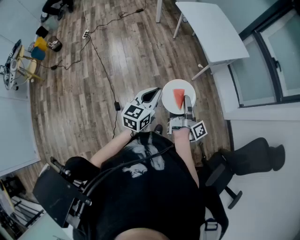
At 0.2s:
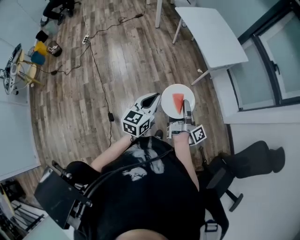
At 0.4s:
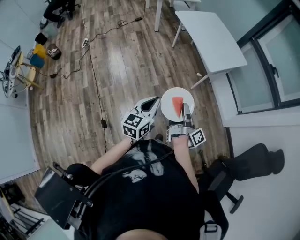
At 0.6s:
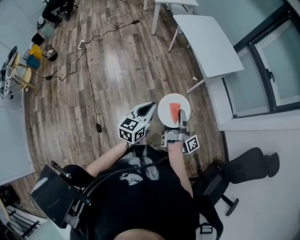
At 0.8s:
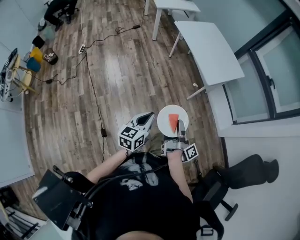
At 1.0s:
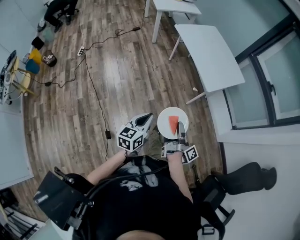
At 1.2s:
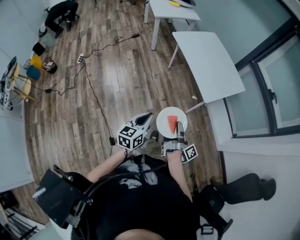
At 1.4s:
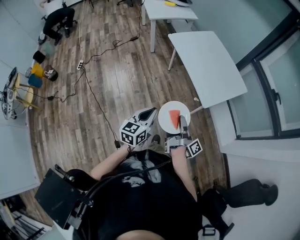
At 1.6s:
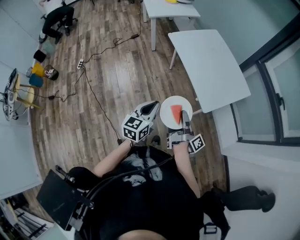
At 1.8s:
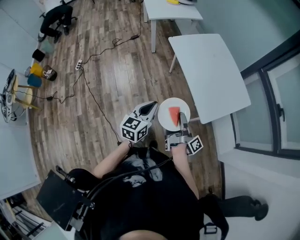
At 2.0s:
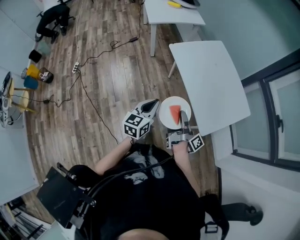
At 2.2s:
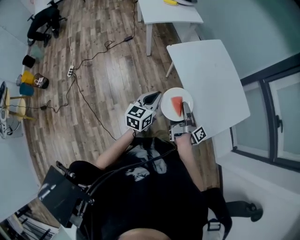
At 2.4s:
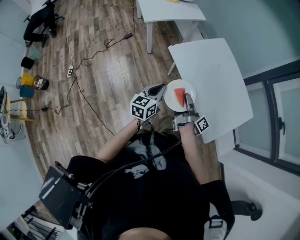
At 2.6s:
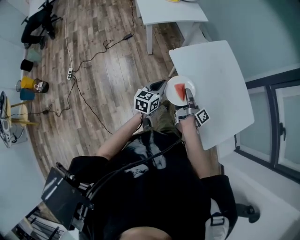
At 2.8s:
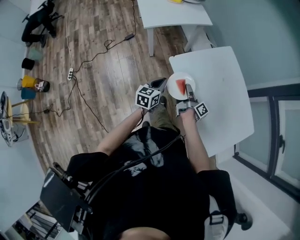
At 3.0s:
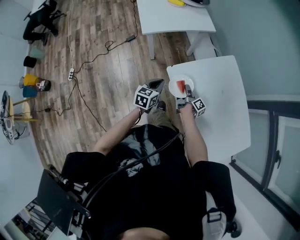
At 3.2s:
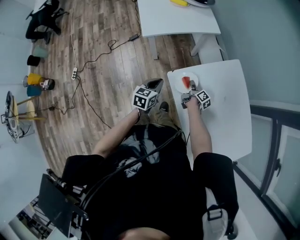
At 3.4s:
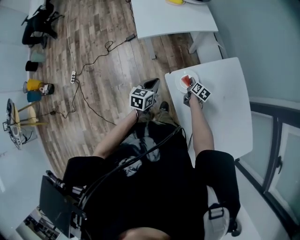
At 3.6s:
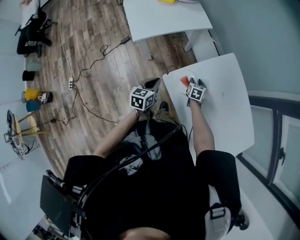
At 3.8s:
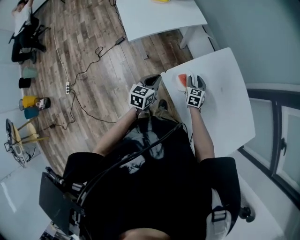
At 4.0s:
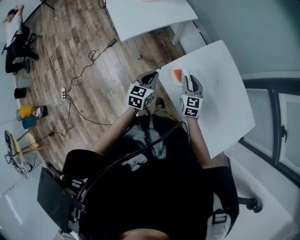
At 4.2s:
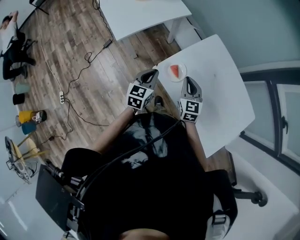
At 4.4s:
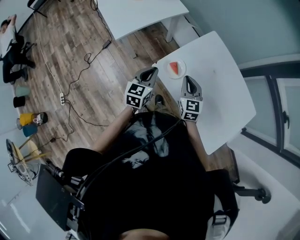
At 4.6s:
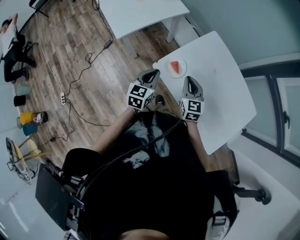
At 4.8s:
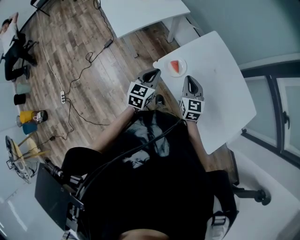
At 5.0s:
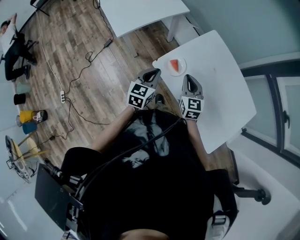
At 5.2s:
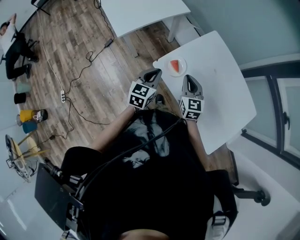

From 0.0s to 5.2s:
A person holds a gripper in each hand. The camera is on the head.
From 0.0s to 1.8s: The left gripper shifts by approximately 40 cm.
From 1.8s to 3.4s: The left gripper shifts by some 70 cm.
From 3.4s to 5.2s: The left gripper goes approximately 10 cm upward, and turns by about 20 degrees.

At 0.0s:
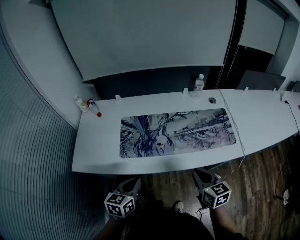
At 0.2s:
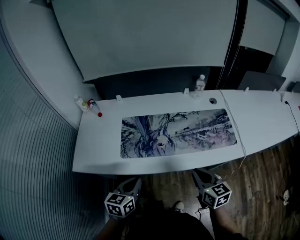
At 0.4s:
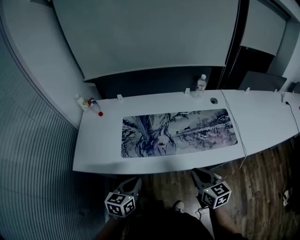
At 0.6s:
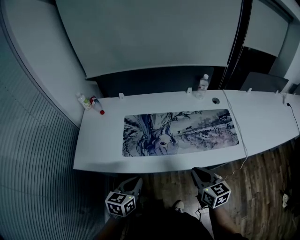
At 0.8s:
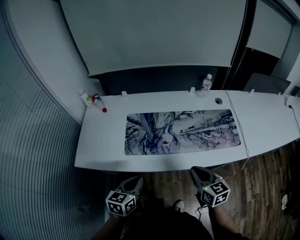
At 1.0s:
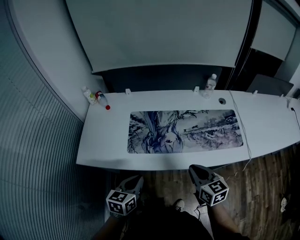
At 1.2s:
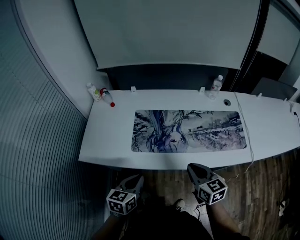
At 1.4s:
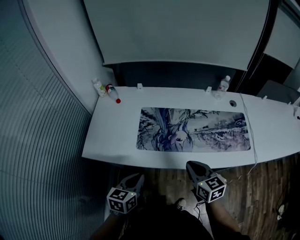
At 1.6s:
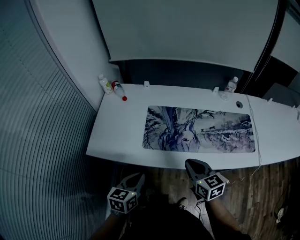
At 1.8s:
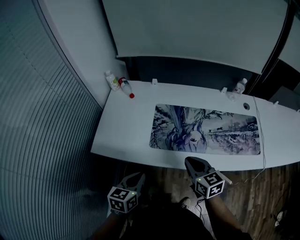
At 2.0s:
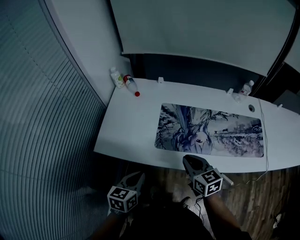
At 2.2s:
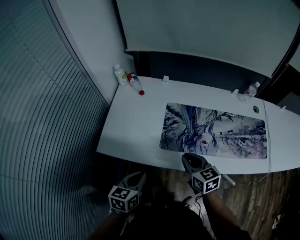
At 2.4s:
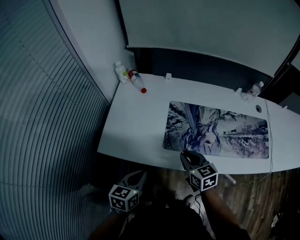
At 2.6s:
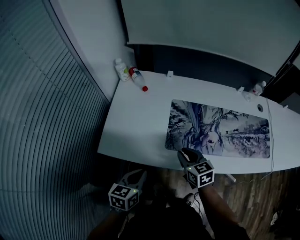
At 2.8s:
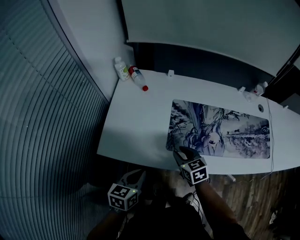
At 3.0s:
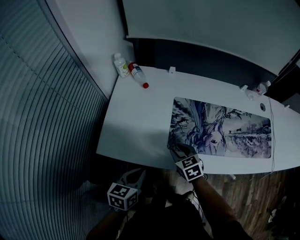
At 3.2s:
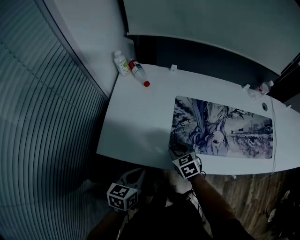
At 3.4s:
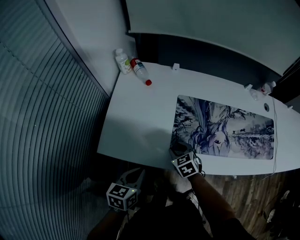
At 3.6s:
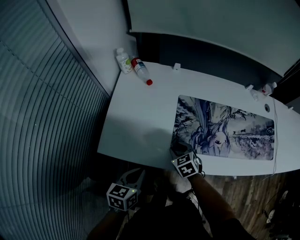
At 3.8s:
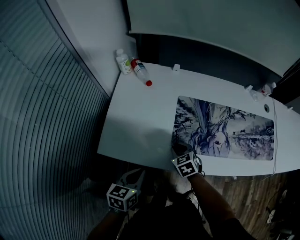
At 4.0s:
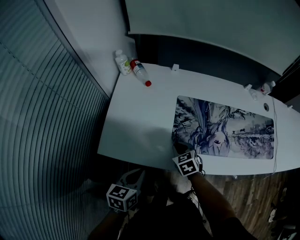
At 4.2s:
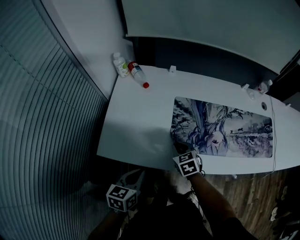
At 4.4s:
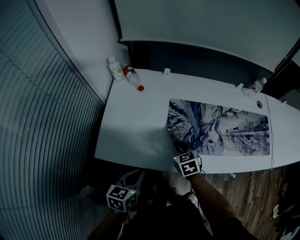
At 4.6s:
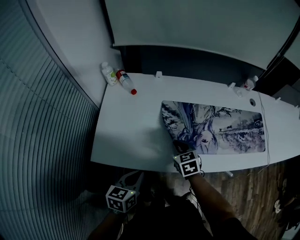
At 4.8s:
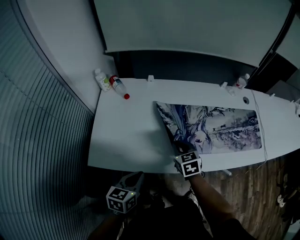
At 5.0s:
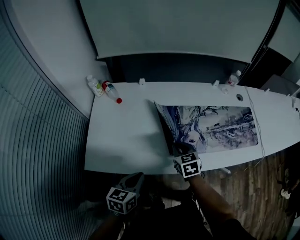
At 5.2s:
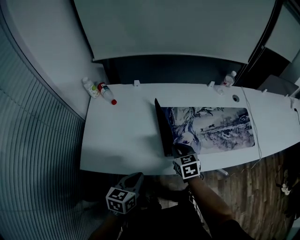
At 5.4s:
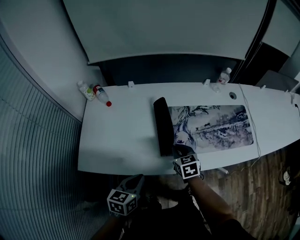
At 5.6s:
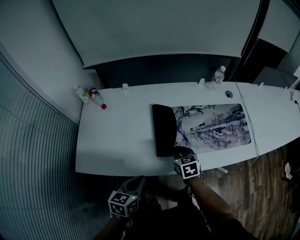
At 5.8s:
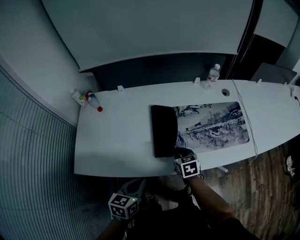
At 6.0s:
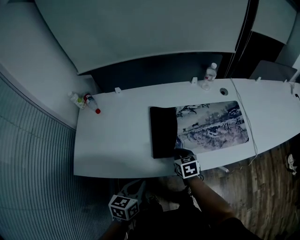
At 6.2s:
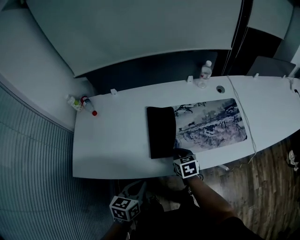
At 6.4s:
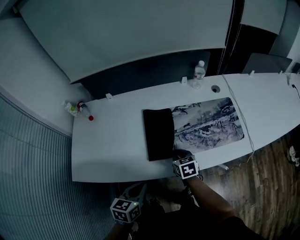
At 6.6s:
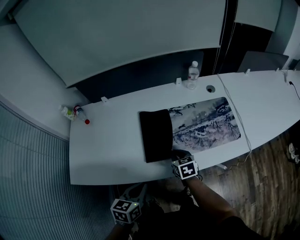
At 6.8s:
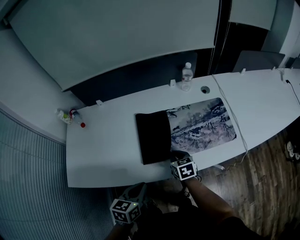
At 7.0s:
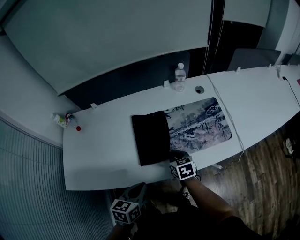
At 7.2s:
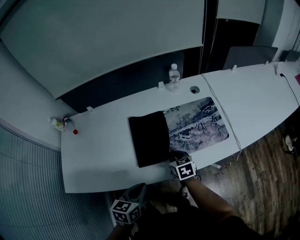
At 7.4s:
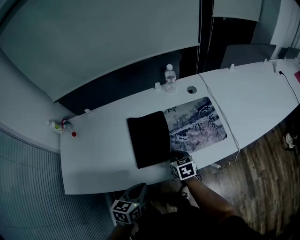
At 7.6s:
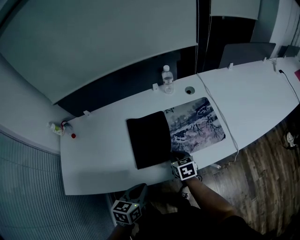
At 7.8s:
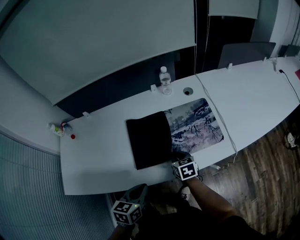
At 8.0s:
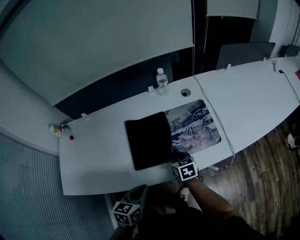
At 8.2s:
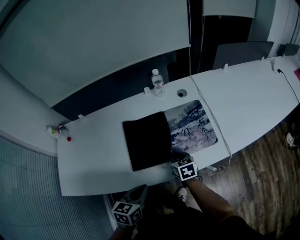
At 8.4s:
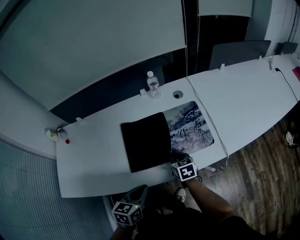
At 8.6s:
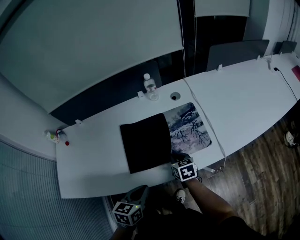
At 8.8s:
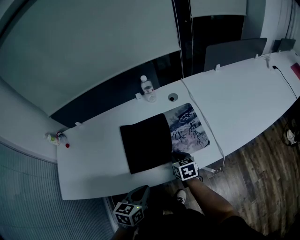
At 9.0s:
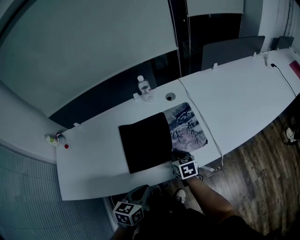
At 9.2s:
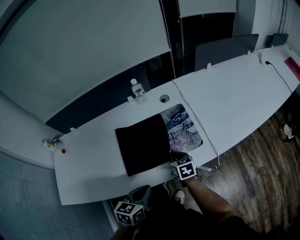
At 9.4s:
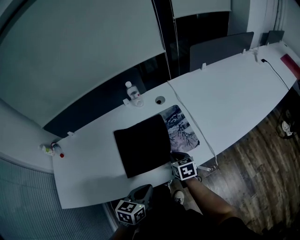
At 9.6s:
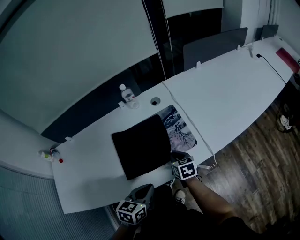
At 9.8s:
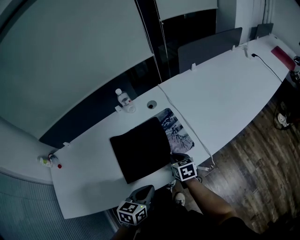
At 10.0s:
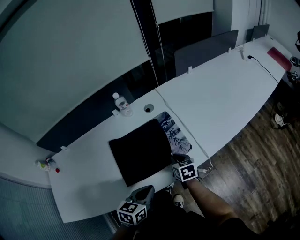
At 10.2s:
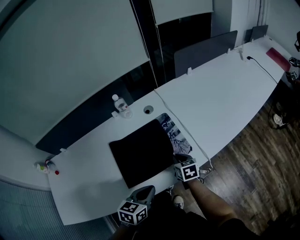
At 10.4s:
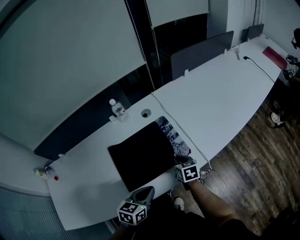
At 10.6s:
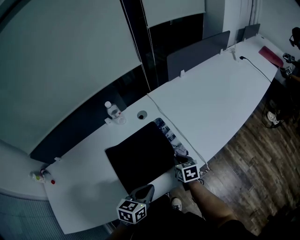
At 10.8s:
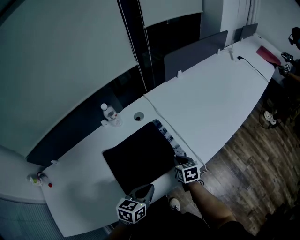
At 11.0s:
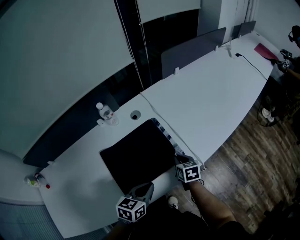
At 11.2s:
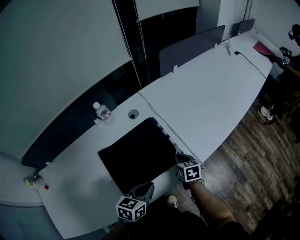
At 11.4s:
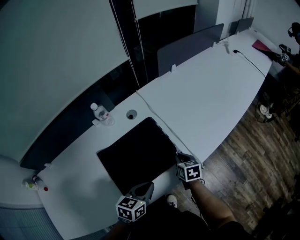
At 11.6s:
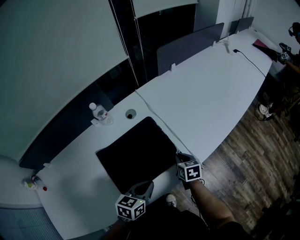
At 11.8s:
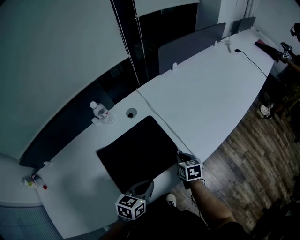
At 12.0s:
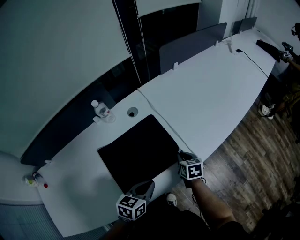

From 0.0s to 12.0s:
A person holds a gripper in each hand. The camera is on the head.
From 0.0s to 1.6s: The right gripper travels to the left by about 15 cm. The left gripper moves to the left, roughly 10 cm.
From 1.6s to 3.0s: The left gripper shifts approximately 15 cm to the left, forward and downward, while the right gripper moves to the left, downward and forward, roughly 25 cm, turns by roughly 20 degrees, and opens its fingers.
From 3.0s to 4.4s: The grippers make only small movements.
From 4.4s to 6.0s: Both grippers move to the right, roughly 25 cm. The right gripper changes its angle by about 20 degrees.
From 6.0s to 7.6s: The grippers both shift to the right by some 15 cm.
From 7.6s to 9.0s: The two grippers go approximately 10 cm to the right.
From 9.0s to 10.4s: The left gripper moves forward and to the right, some 10 cm. Meanwhile the right gripper is displaced to the right by about 10 cm.
From 10.4s to 12.0s: The right gripper goes roughly 5 cm to the right. The left gripper travels forward by about 5 cm.

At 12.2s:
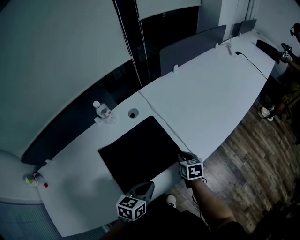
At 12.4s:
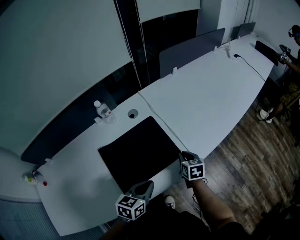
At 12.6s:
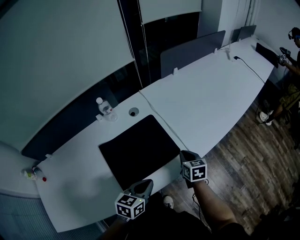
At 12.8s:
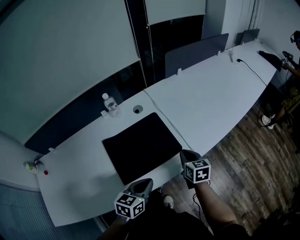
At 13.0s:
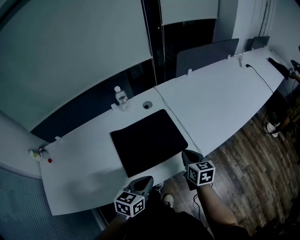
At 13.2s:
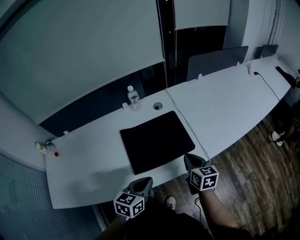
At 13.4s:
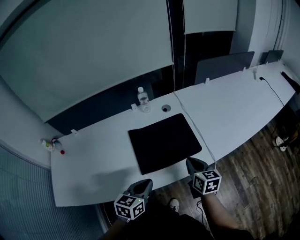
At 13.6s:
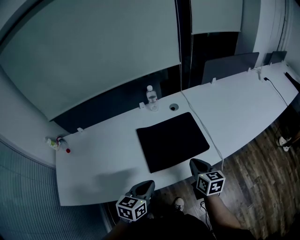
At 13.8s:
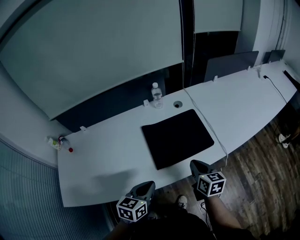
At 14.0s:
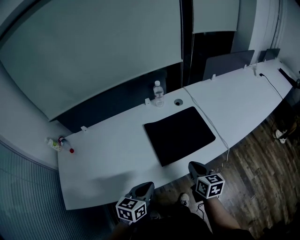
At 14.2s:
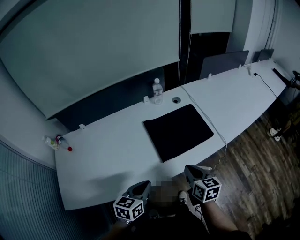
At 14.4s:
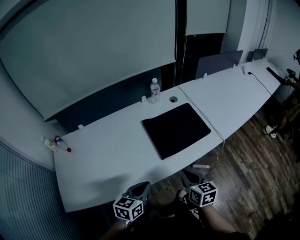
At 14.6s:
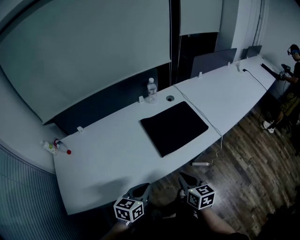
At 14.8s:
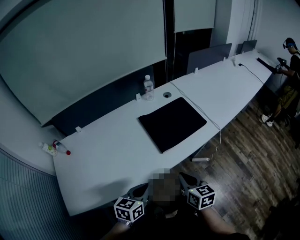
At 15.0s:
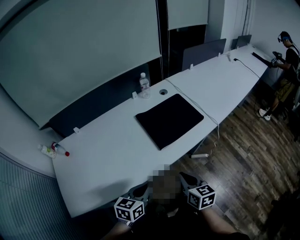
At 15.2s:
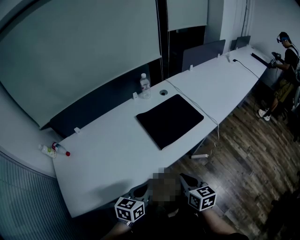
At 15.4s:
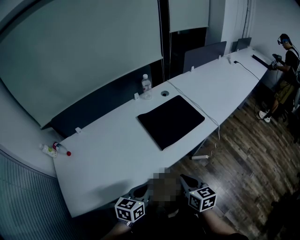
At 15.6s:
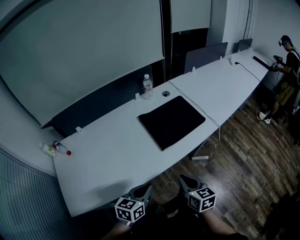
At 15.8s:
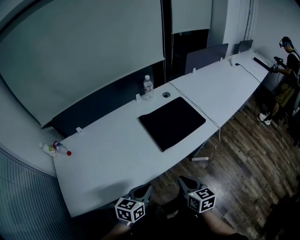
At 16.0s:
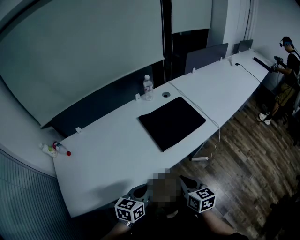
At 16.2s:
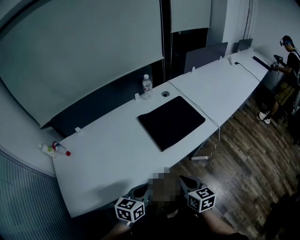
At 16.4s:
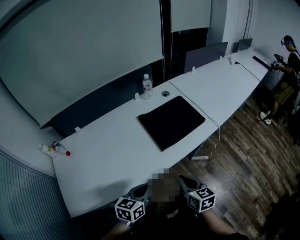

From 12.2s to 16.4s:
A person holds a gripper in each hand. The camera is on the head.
From 12.2s to 13.6s: The right gripper travels upward, backward and to the left by approximately 20 cm, and changes its angle by about 20 degrees, while the left gripper goes some 20 cm backward, to the left and upward, and changes its angle by some 20 degrees.
From 13.6s to 15.0s: The grippers both shift backward and to the left by roughly 25 cm.
From 15.0s to 16.4s: The grippers stay close to where they were, moving slightly.

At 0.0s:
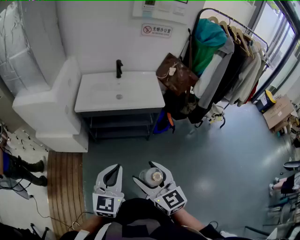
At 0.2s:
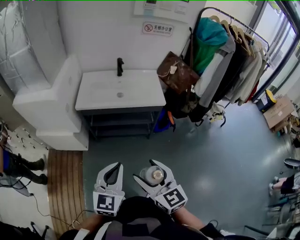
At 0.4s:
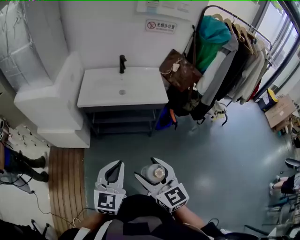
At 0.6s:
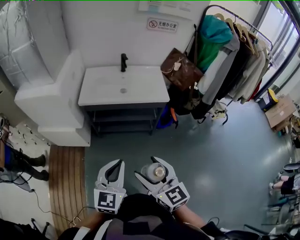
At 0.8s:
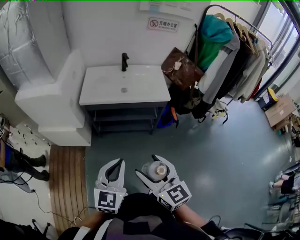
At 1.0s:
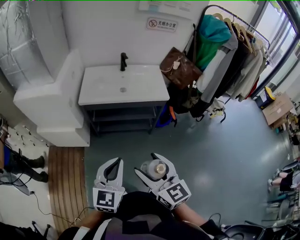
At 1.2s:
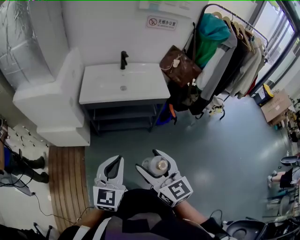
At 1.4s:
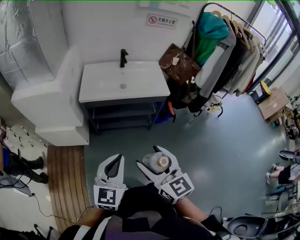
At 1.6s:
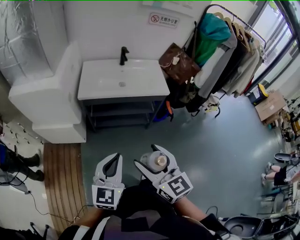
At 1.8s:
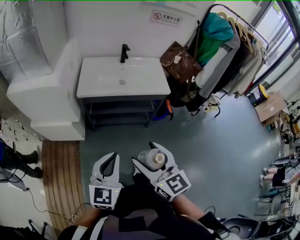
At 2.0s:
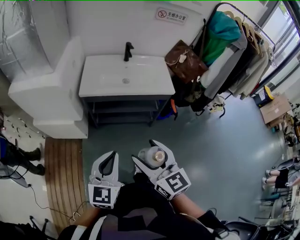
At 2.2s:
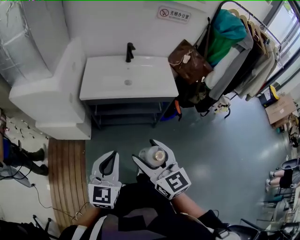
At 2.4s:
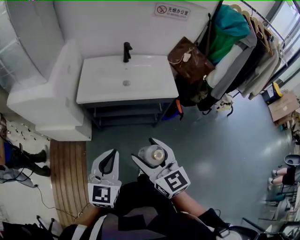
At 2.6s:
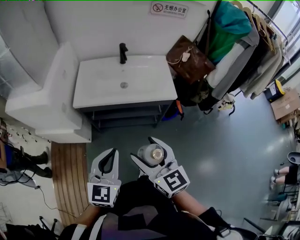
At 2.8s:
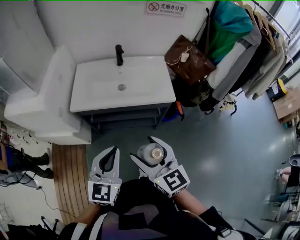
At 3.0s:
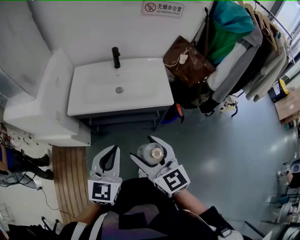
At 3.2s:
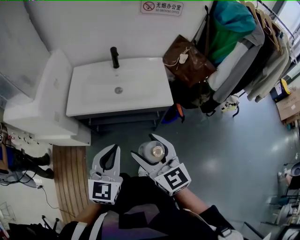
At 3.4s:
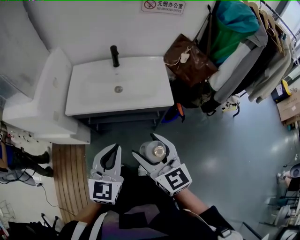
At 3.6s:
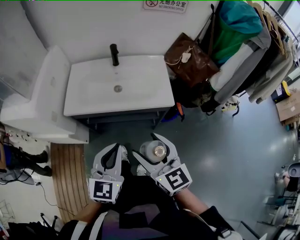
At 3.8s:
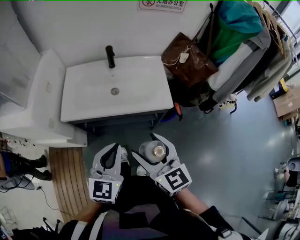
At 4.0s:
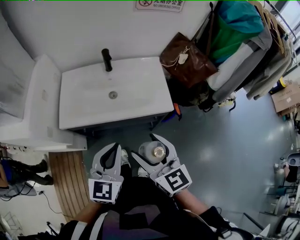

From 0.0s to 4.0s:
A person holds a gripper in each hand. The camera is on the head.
From 0.0s to 1.4s: The grippers both shift to the left by roughly 5 cm.
From 1.4s to 2.6s: The grippers both shift forward by approximately 15 cm.
From 2.6s to 4.0s: Both grippers move forward and to the right, approximately 15 cm.
